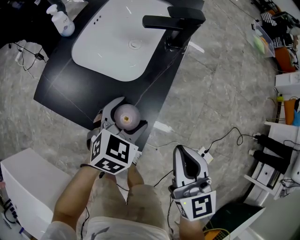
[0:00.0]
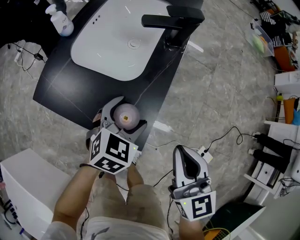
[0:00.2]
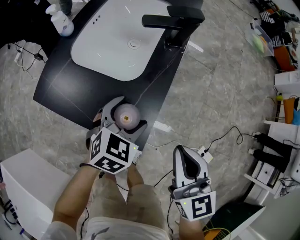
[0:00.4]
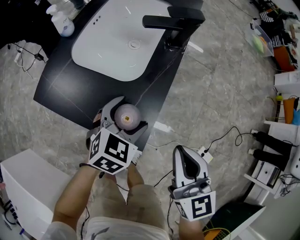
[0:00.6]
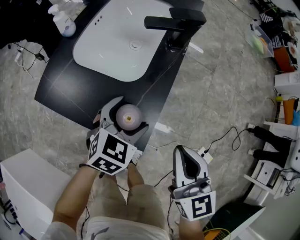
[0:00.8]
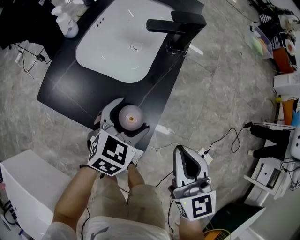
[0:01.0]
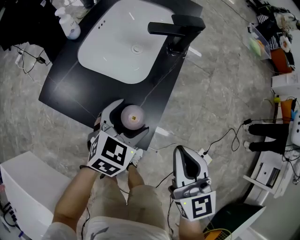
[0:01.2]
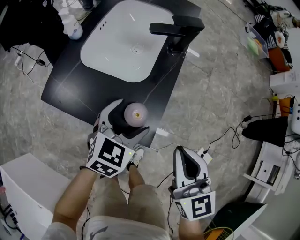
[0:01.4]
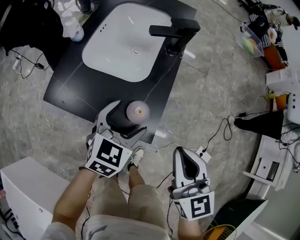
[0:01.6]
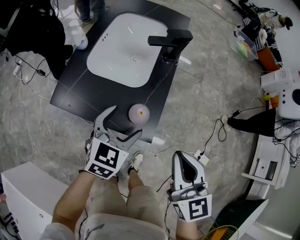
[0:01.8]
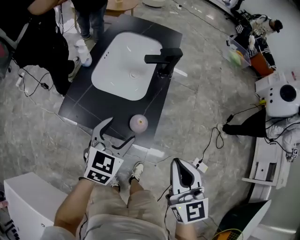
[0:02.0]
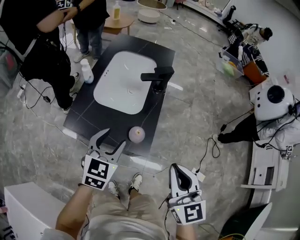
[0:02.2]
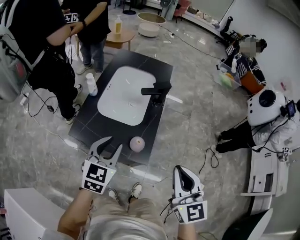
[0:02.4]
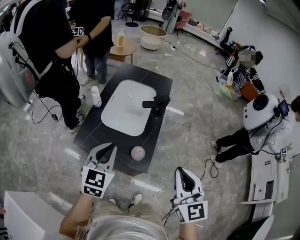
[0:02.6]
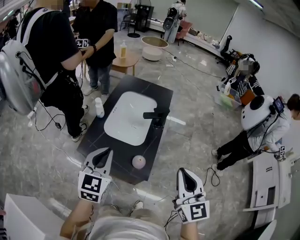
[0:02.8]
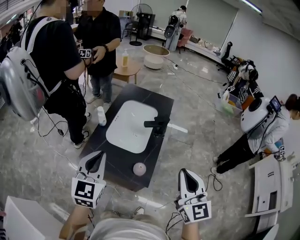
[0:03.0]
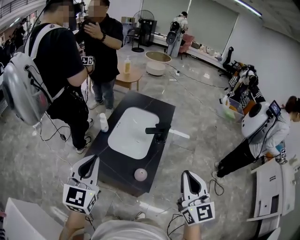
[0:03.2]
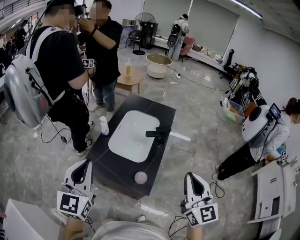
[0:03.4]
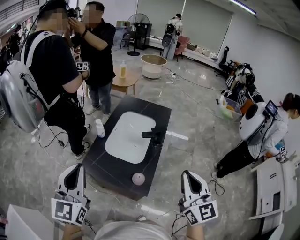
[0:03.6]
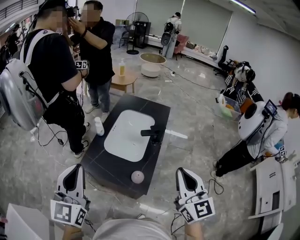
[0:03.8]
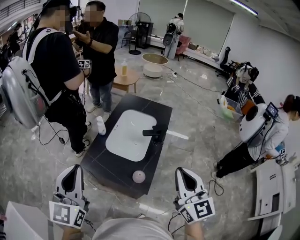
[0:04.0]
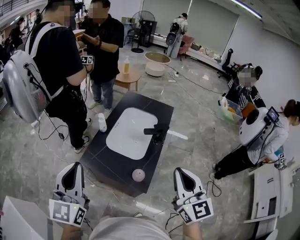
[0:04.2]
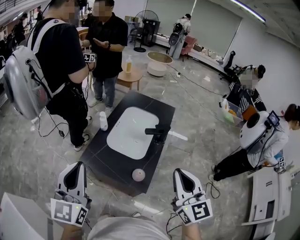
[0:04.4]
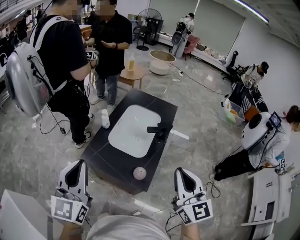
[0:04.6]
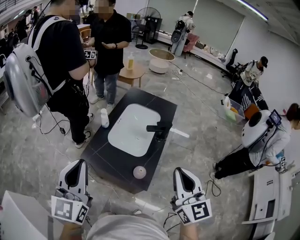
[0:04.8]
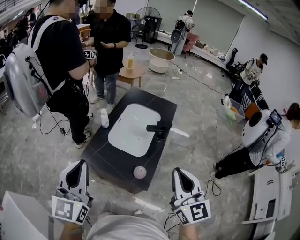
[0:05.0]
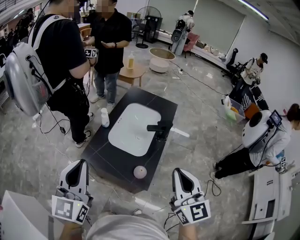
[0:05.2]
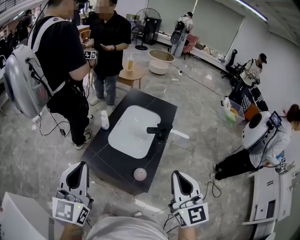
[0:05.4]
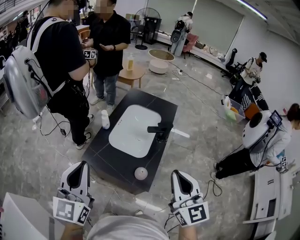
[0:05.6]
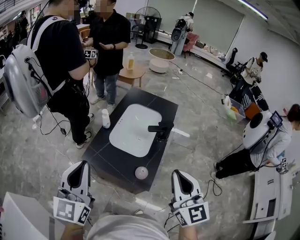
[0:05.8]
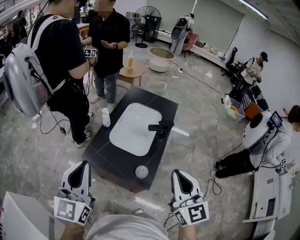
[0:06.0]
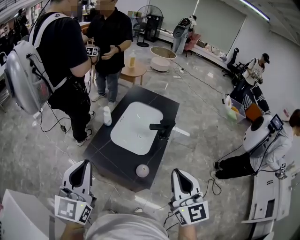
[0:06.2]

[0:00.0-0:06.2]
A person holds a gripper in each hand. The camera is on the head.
0:00.0 to 0:01.6: The right gripper changes place by roughly 5 cm, while the left gripper heads upward, covering some 5 cm.
0:01.6 to 0:03.2: The right gripper travels upward by some 25 cm, and changes its angle by some 20 degrees. Meanwhile the left gripper is displaced upward and to the left by about 40 cm, rotates some 40 degrees, and closes up.
0:03.2 to 0:04.6: The left gripper changes place by about 5 cm.
0:04.6 to 0:06.2: There are only small adjustments of the grippers.

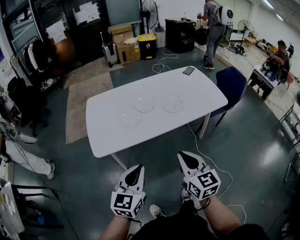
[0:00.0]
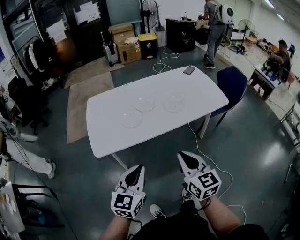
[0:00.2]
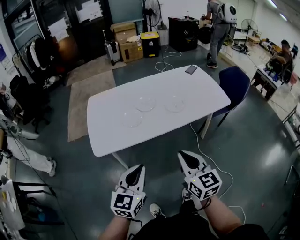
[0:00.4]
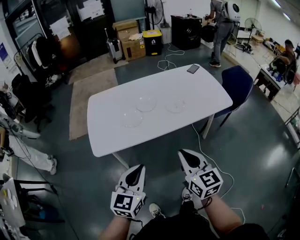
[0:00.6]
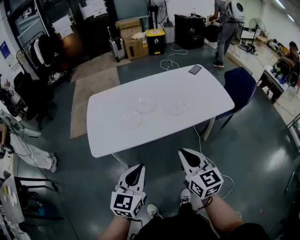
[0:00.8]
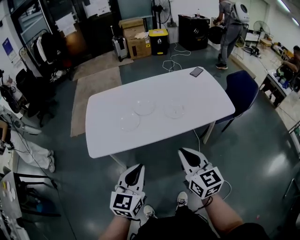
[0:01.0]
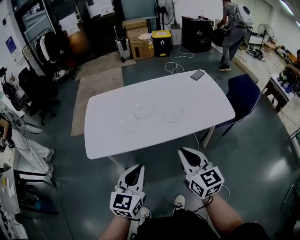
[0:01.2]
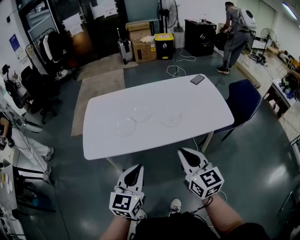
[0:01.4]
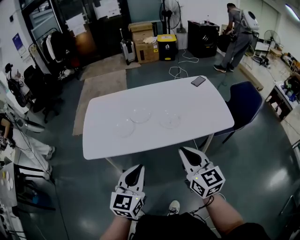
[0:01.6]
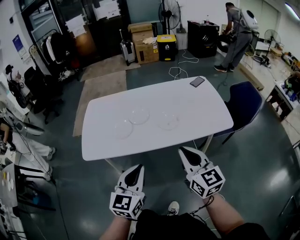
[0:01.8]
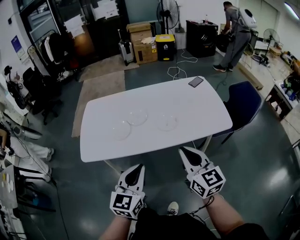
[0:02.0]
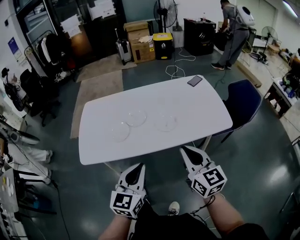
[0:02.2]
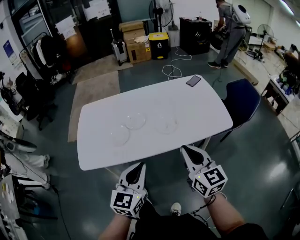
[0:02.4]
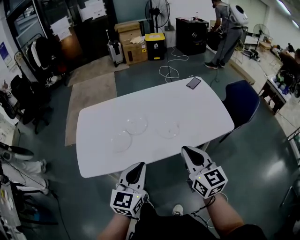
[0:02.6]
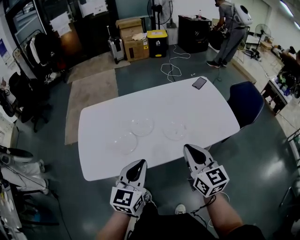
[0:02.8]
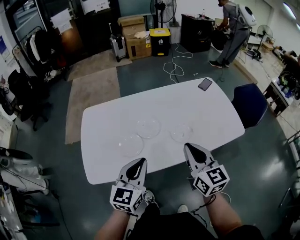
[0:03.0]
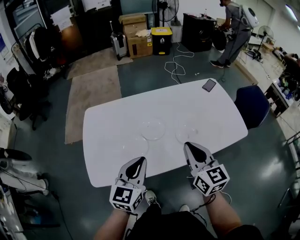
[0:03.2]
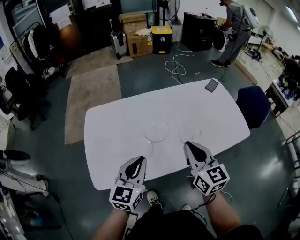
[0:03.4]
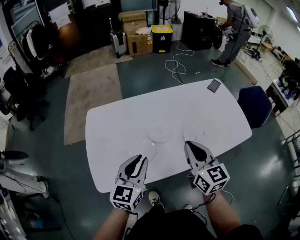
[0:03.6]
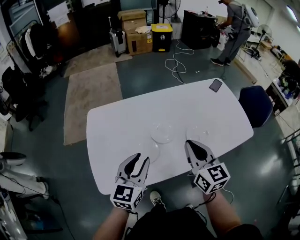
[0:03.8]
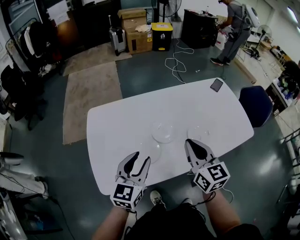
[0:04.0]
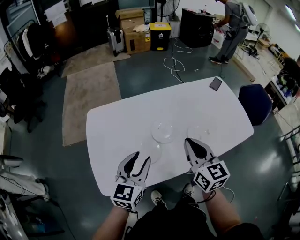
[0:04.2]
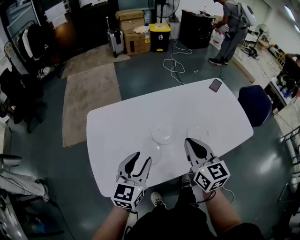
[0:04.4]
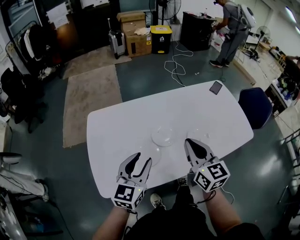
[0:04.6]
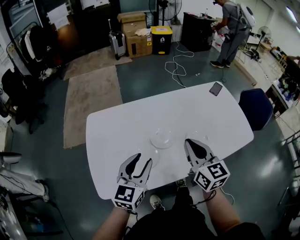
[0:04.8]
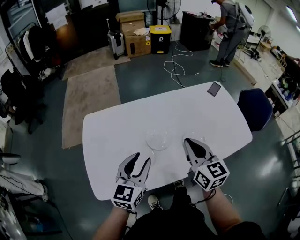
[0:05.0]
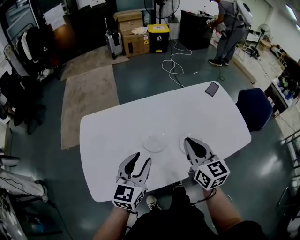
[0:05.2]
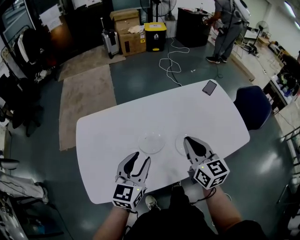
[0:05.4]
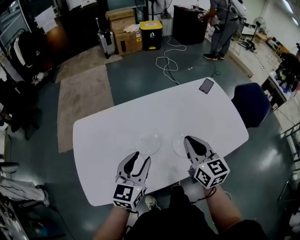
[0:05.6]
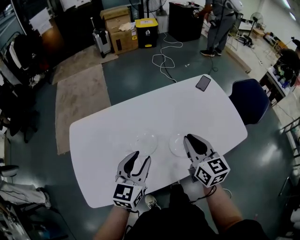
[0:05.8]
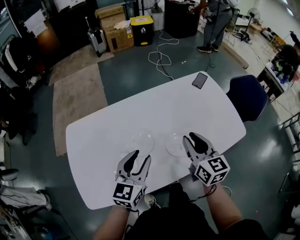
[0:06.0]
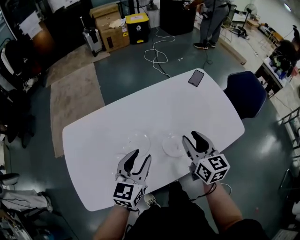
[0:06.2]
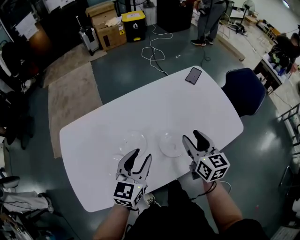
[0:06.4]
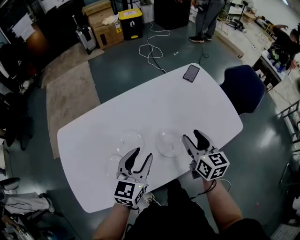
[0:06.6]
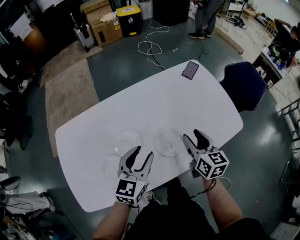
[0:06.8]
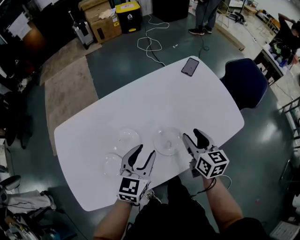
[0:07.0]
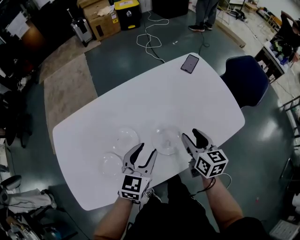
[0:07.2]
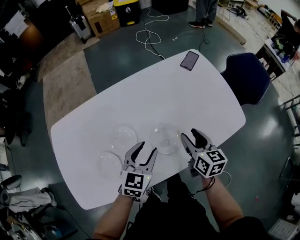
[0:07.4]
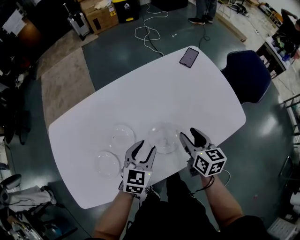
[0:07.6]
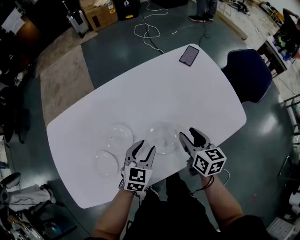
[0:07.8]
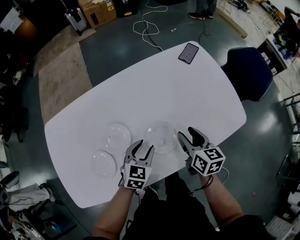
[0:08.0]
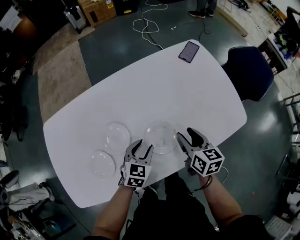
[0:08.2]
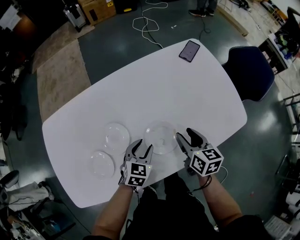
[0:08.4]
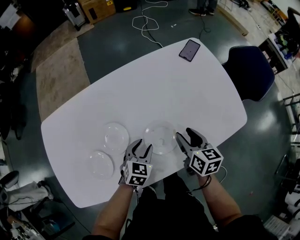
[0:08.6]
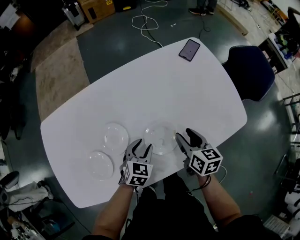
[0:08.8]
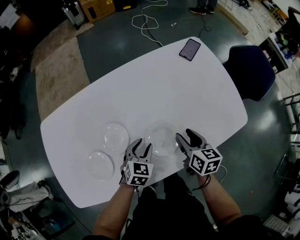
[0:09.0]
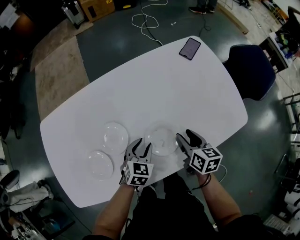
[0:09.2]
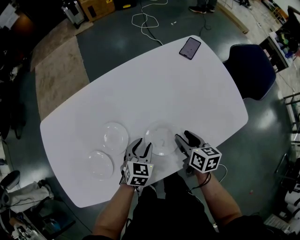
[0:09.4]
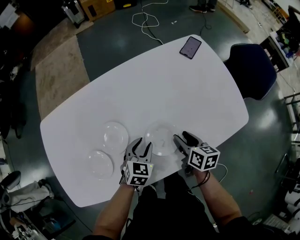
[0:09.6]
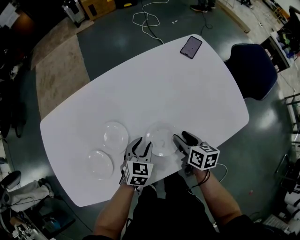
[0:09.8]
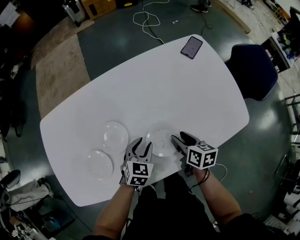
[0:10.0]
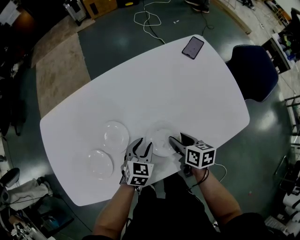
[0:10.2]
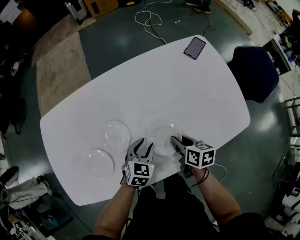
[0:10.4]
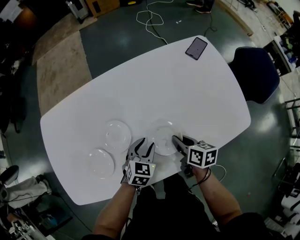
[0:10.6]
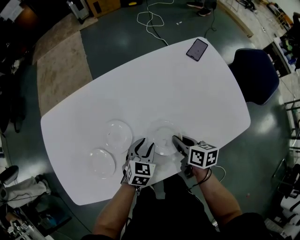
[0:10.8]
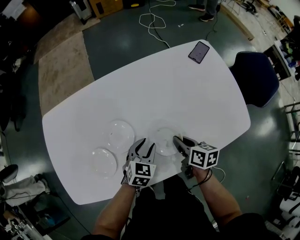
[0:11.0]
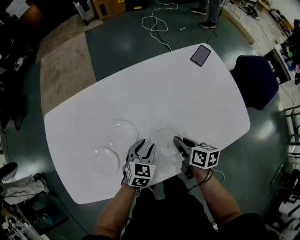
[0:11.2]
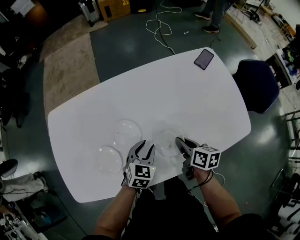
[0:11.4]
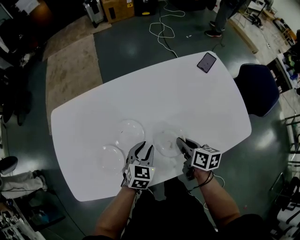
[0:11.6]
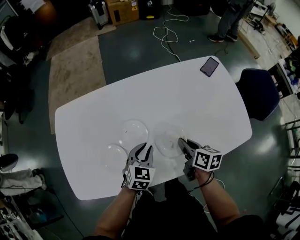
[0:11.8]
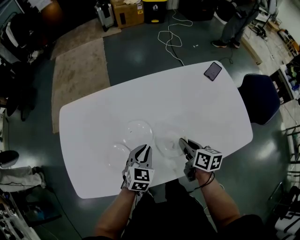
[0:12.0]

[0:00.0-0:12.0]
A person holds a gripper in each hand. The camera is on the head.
0:00.0 to 0:01.6: The grippers both shift to the right and forward by some 20 cm.
0:01.6 to 0:03.0: Both grippers travel together forward and to the left, about 20 cm.
0:03.0 to 0:04.4: The two grippers go about 15 cm to the left and forward. The left gripper opens its fingers.
0:04.4 to 0:06.0: The grippers both shift to the right and forward by approximately 20 cm. The right gripper opens its fingers.
0:06.0 to 0:07.6: The right gripper shifts about 15 cm downward and to the right, and opens, while the left gripper goes roughly 20 cm downward, to the right and forward.
0:07.6 to 0:09.0: The left gripper moves downward, approximately 10 cm. The right gripper is displaced downward by about 5 cm.
0:09.0 to 0:10.4: The right gripper travels downward by roughly 5 cm, and closes.
0:10.4 to 0:12.0: The left gripper travels to the left and upward by approximately 15 cm, and closes up; the right gripper heads upward and to the left, covering about 10 cm.

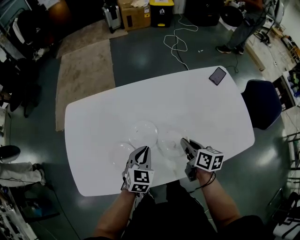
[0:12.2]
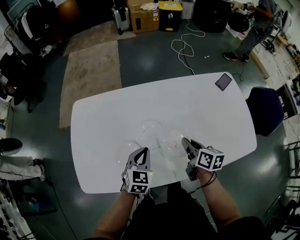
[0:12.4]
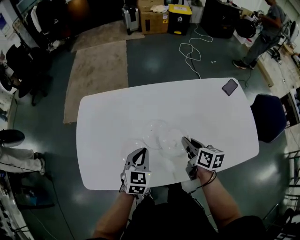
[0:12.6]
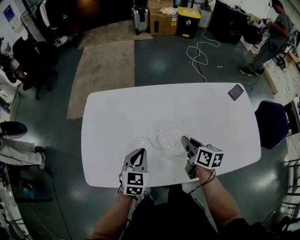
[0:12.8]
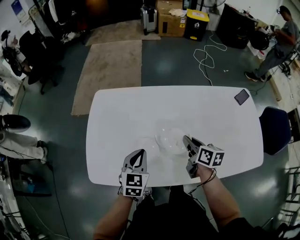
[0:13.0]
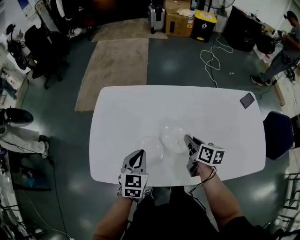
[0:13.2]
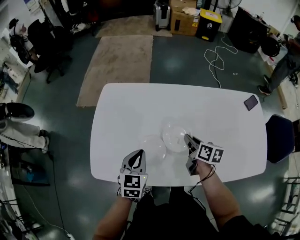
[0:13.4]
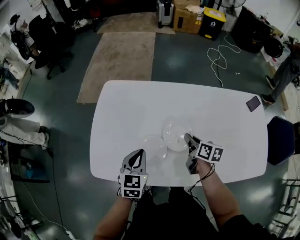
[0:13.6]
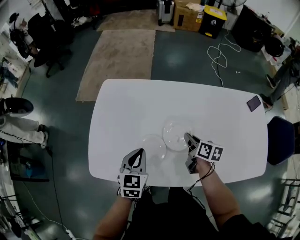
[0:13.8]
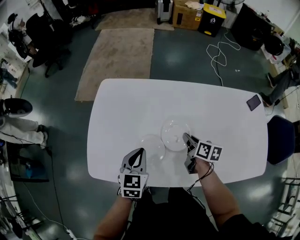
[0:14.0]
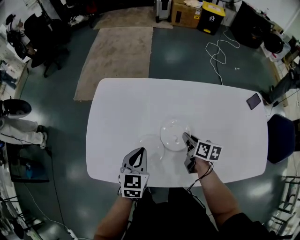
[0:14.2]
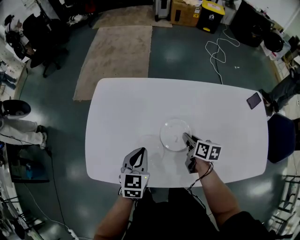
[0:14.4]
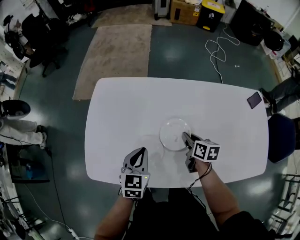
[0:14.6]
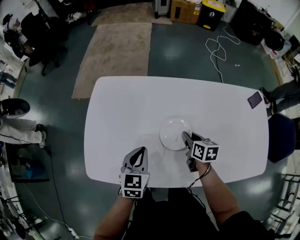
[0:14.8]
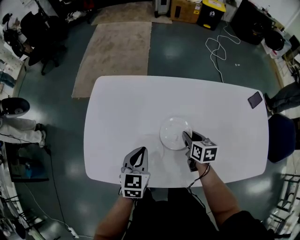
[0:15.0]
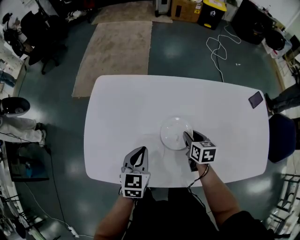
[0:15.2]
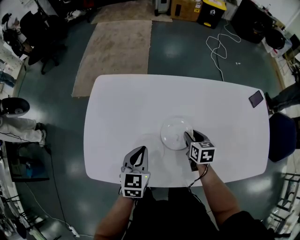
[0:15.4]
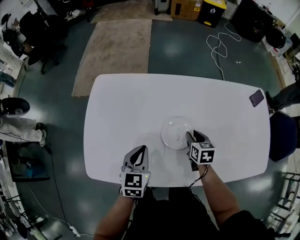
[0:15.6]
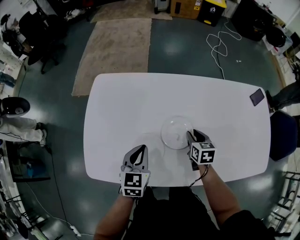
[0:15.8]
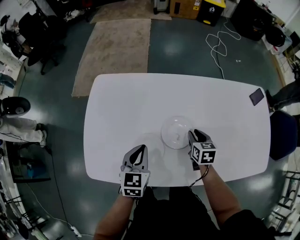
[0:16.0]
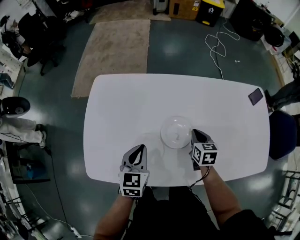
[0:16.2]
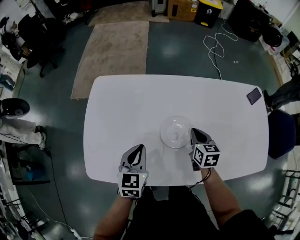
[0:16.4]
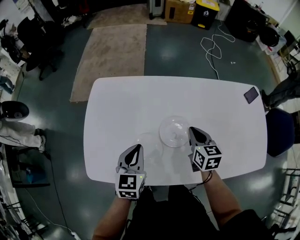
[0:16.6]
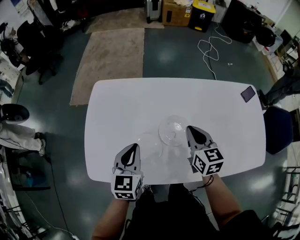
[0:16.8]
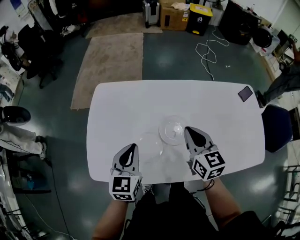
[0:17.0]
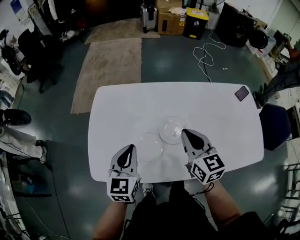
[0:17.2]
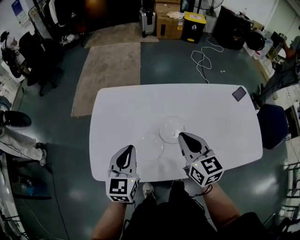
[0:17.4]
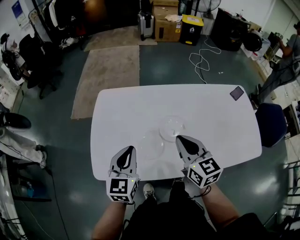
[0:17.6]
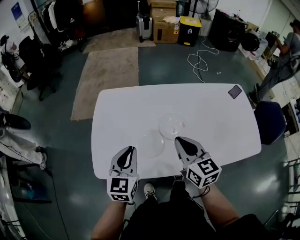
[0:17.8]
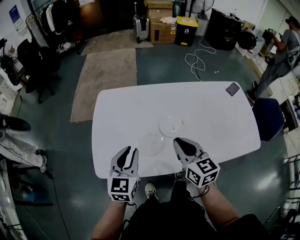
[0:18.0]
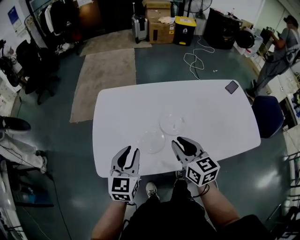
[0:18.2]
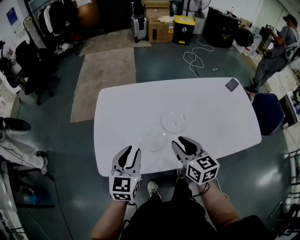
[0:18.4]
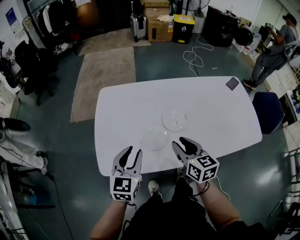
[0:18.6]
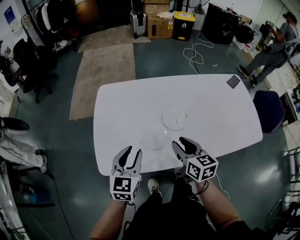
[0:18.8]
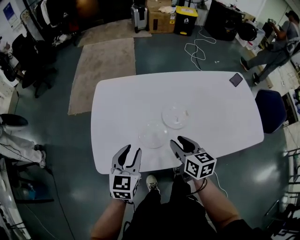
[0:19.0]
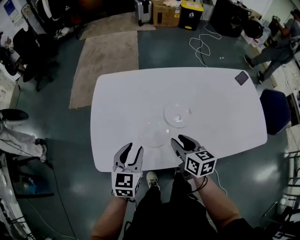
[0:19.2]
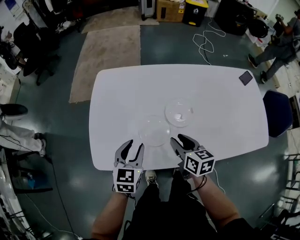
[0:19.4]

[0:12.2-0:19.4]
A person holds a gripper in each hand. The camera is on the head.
0:12.2 to 0:13.6: The left gripper shifts roughly 20 cm to the left, and turns by roughly 30 degrees, while the right gripper goes some 20 cm to the left and forward.
0:13.6 to 0:15.0: The right gripper ends up about 5 cm from where it was.
0:15.0 to 0:16.6: The right gripper travels upward by about 10 cm, and closes up.
0:16.6 to 0:18.0: The right gripper goes some 25 cm backward, upward and to the left. The left gripper heads backward, upward and to the left, covering some 15 cm.
0:18.0 to 0:19.4: Both grippers travel together downward, approximately 10 cm. The right gripper swivels roughly 20 degrees, and opens.
